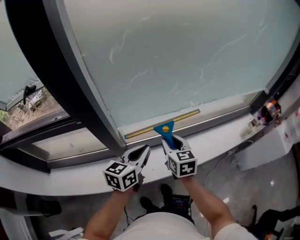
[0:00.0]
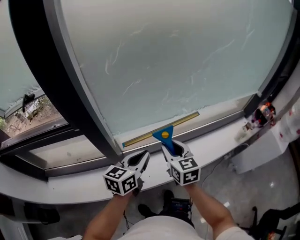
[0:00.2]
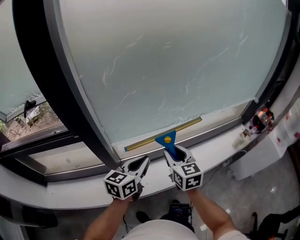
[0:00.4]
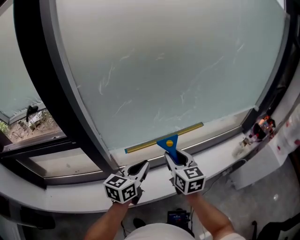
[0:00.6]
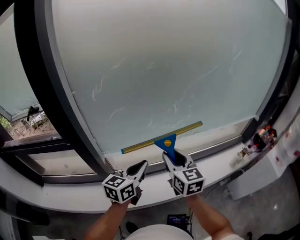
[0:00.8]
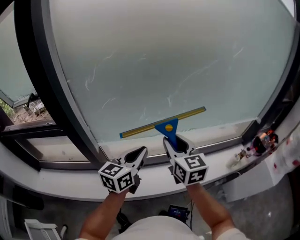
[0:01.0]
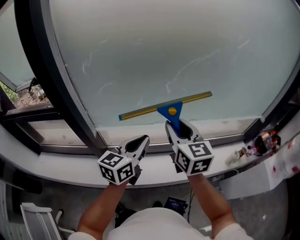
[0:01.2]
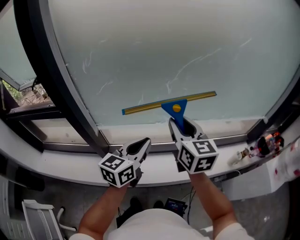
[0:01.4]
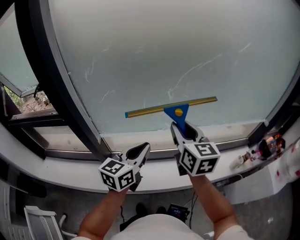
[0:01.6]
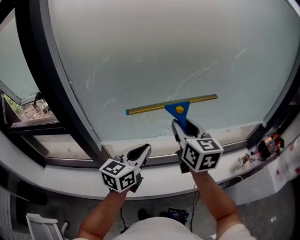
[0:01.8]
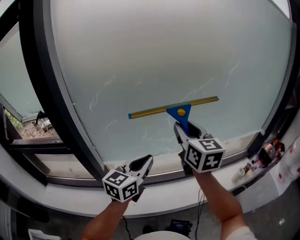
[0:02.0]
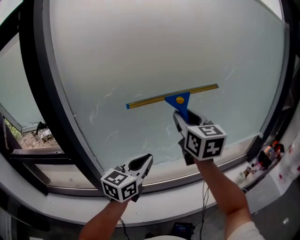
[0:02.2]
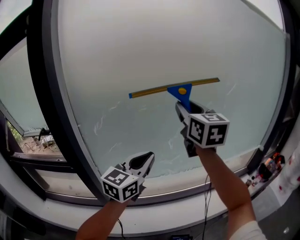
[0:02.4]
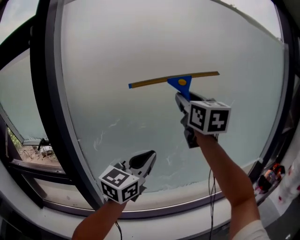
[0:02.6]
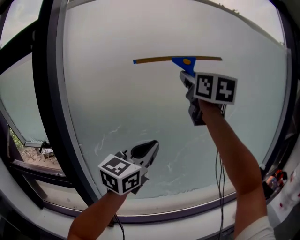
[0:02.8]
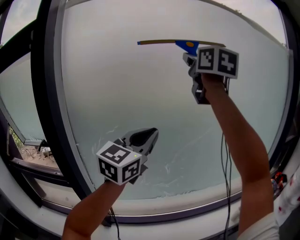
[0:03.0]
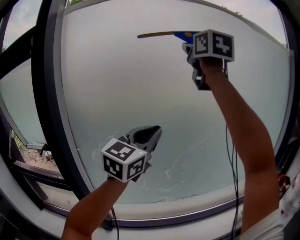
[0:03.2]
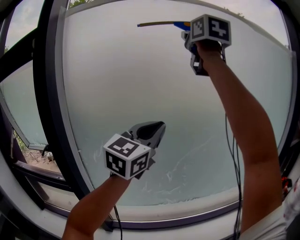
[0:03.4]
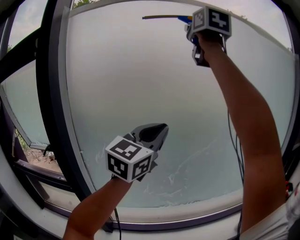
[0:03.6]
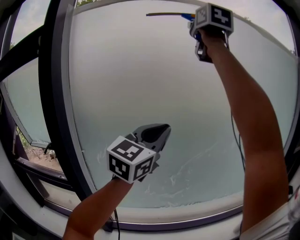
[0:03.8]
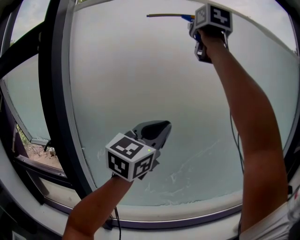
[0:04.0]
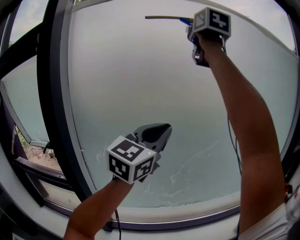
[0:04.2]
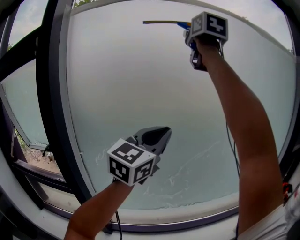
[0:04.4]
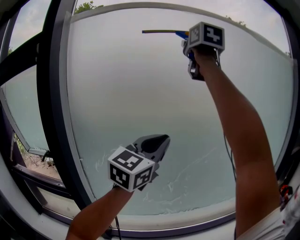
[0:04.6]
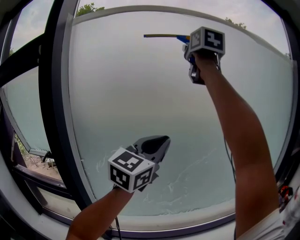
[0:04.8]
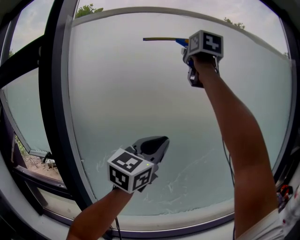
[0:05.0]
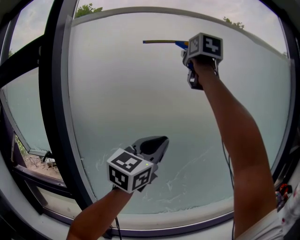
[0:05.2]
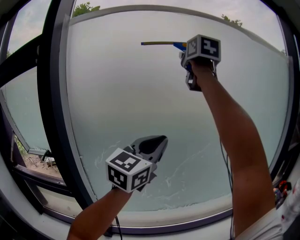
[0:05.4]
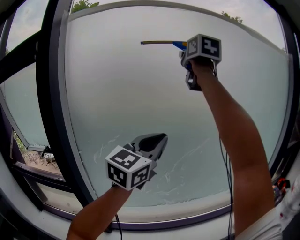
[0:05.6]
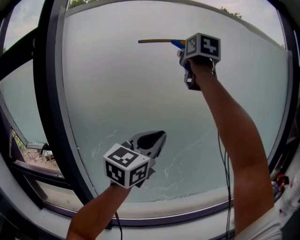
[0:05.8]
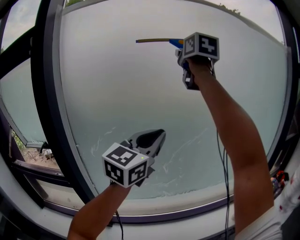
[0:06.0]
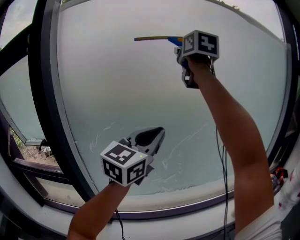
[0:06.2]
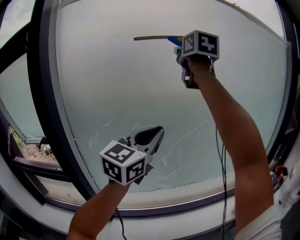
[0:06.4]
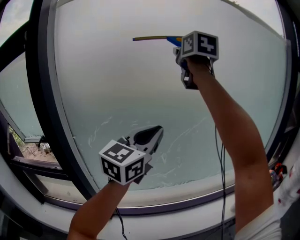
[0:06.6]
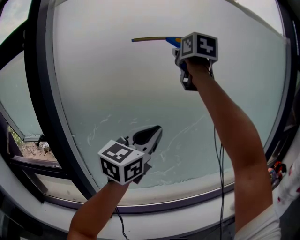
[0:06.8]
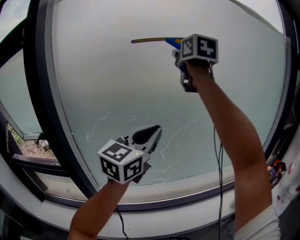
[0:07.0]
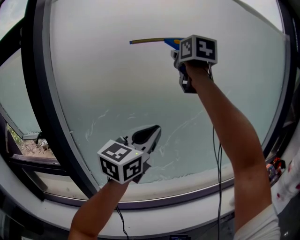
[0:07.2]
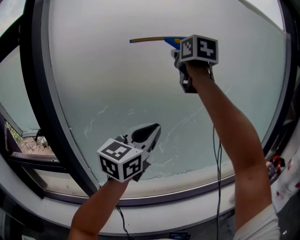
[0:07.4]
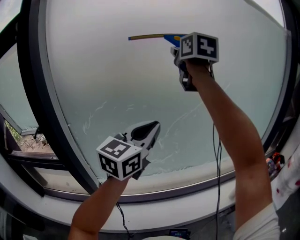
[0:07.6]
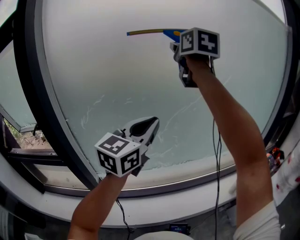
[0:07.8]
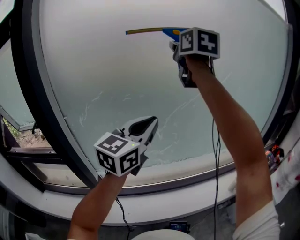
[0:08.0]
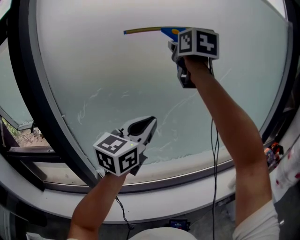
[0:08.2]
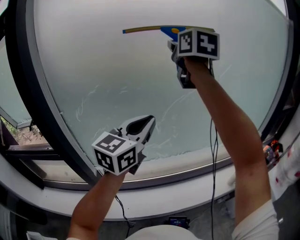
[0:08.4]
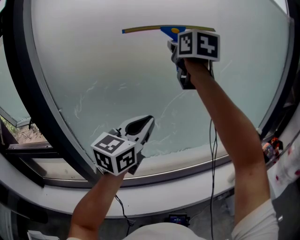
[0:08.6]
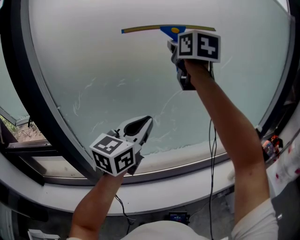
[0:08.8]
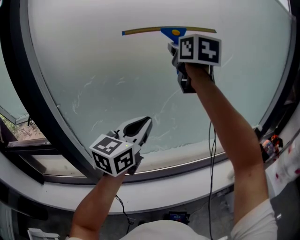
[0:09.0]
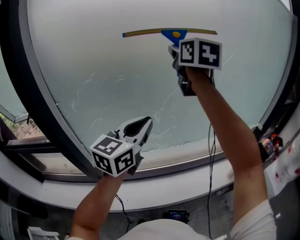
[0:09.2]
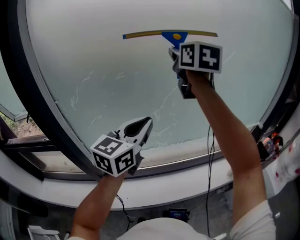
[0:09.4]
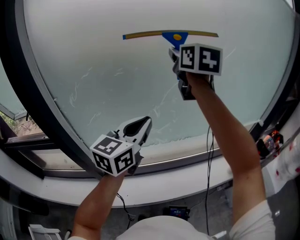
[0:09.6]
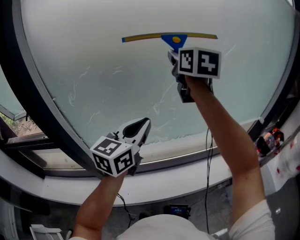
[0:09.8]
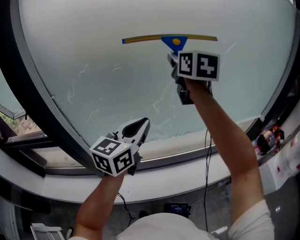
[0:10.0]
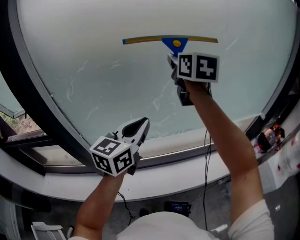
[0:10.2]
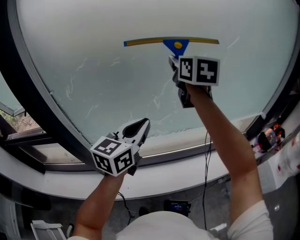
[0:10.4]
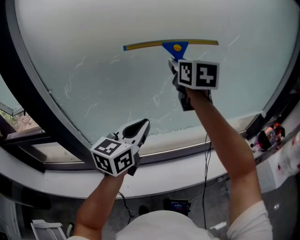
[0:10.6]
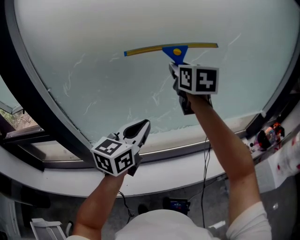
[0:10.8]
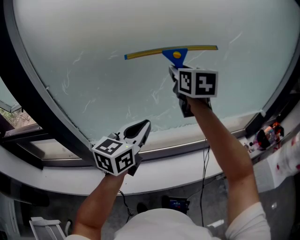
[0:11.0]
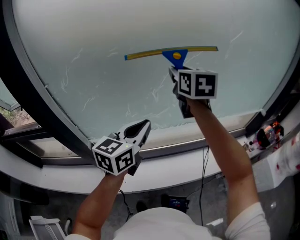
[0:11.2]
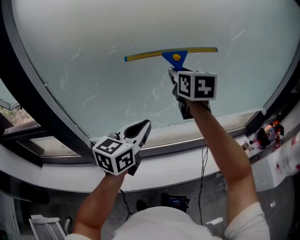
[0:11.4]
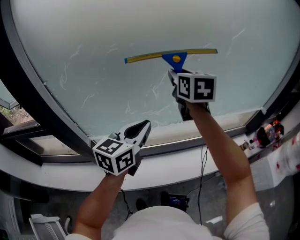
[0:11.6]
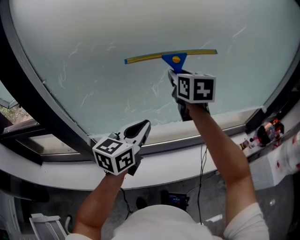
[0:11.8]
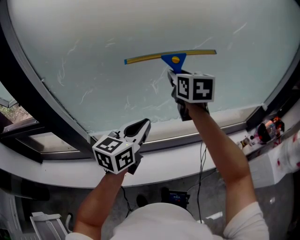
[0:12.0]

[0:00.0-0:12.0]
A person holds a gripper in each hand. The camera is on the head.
0:00.0 to 0:01.6: The left gripper shifts some 25 cm to the right and upward. The right gripper is displaced upward and to the right by about 30 cm, and rotates approximately 20 degrees.
0:01.6 to 0:03.0: The right gripper moves upward, approximately 50 cm, and rotates roughly 30 degrees. The left gripper is displaced upward by approximately 35 cm, and rotates some 40 degrees.
0:03.0 to 0:04.4: The right gripper travels upward by about 15 cm. Meanwhile the left gripper ends up some 5 cm from where it was.
0:04.4 to 0:06.0: The left gripper moves some 5 cm; the right gripper travels downward by some 10 cm.
0:06.0 to 0:07.6: The right gripper heads downward, covering approximately 10 cm. Meanwhile the left gripper goes roughly 5 cm downward.
0:07.6 to 0:09.0: The two grippers go some 10 cm downward.
0:09.0 to 0:10.4: The left gripper goes some 10 cm downward. The right gripper goes about 15 cm downward.
0:10.4 to 0:12.0: The right gripper moves downward, about 15 cm, while the left gripper goes roughly 5 cm downward.

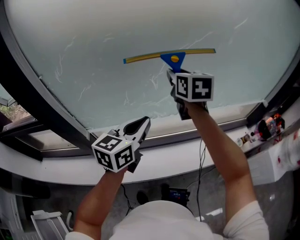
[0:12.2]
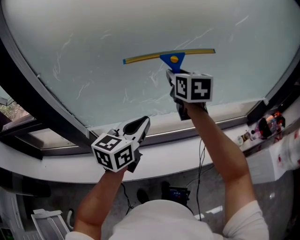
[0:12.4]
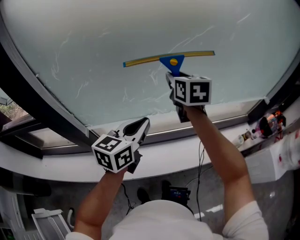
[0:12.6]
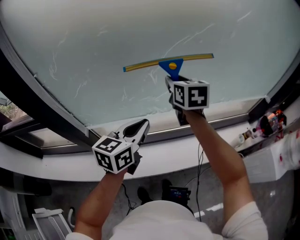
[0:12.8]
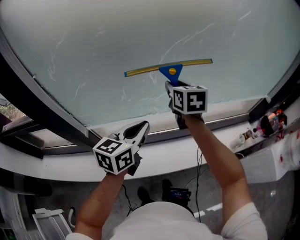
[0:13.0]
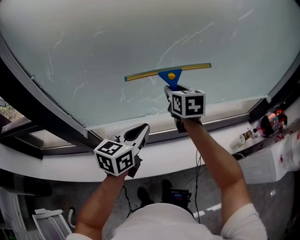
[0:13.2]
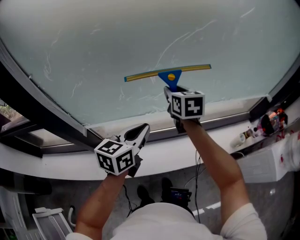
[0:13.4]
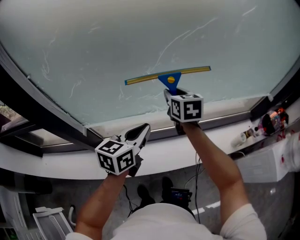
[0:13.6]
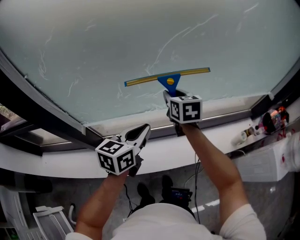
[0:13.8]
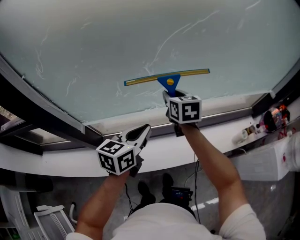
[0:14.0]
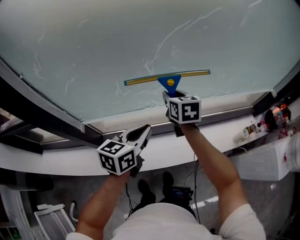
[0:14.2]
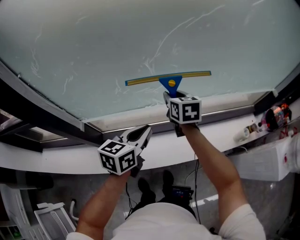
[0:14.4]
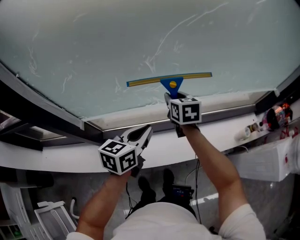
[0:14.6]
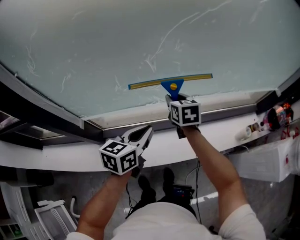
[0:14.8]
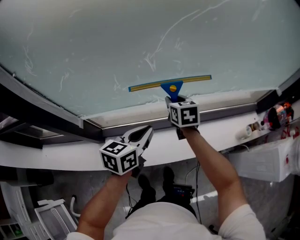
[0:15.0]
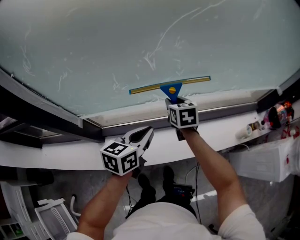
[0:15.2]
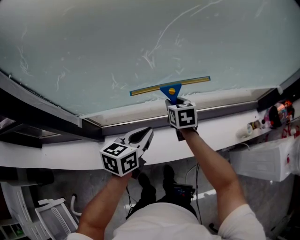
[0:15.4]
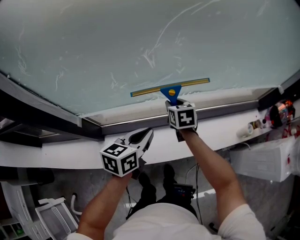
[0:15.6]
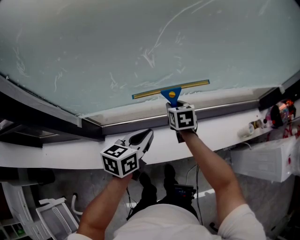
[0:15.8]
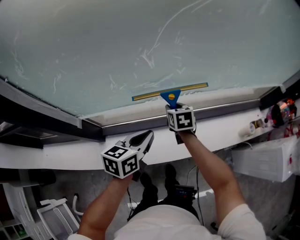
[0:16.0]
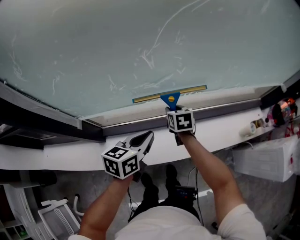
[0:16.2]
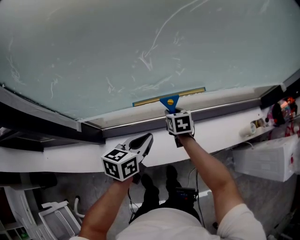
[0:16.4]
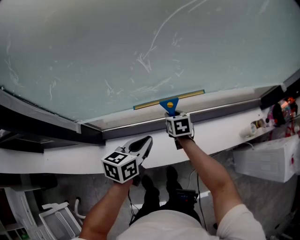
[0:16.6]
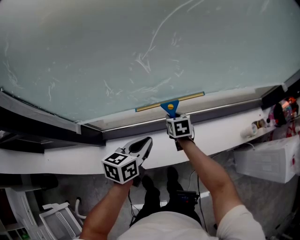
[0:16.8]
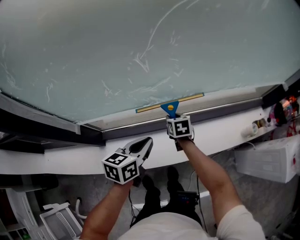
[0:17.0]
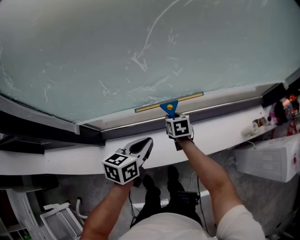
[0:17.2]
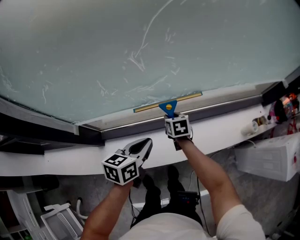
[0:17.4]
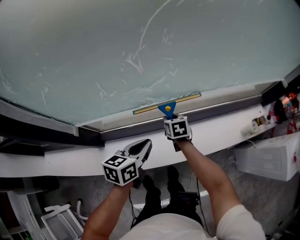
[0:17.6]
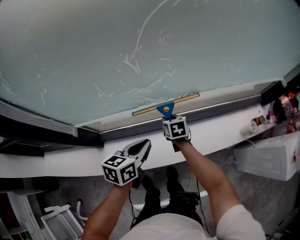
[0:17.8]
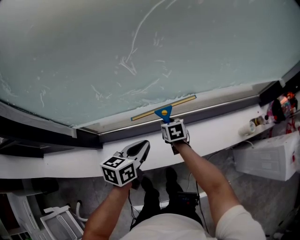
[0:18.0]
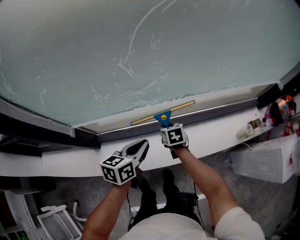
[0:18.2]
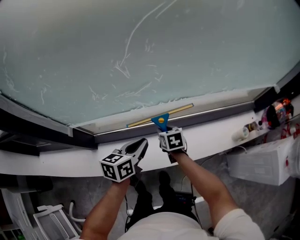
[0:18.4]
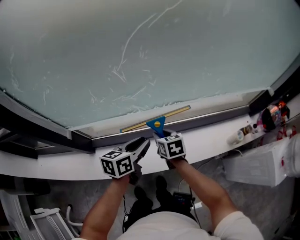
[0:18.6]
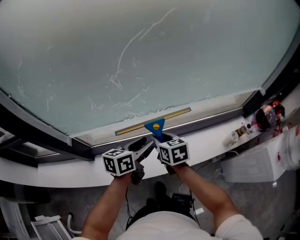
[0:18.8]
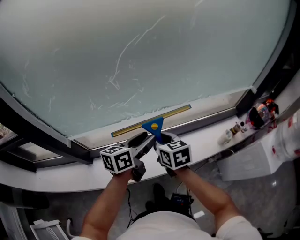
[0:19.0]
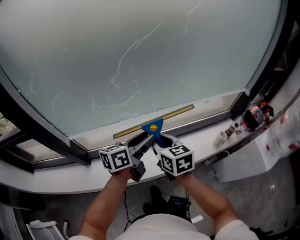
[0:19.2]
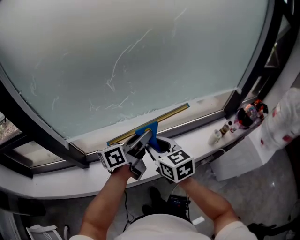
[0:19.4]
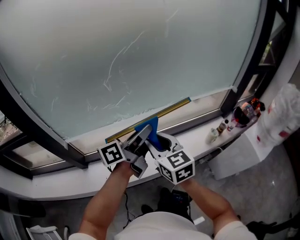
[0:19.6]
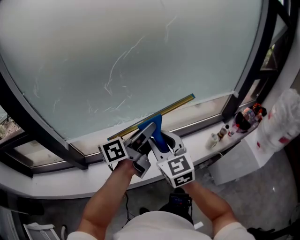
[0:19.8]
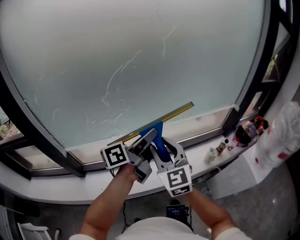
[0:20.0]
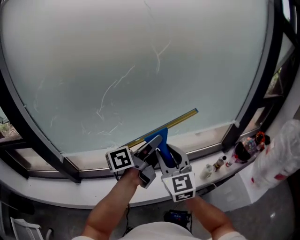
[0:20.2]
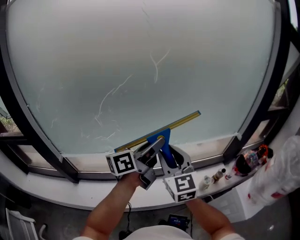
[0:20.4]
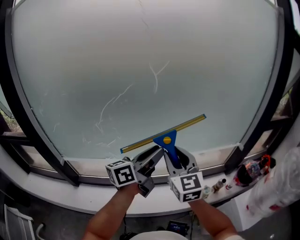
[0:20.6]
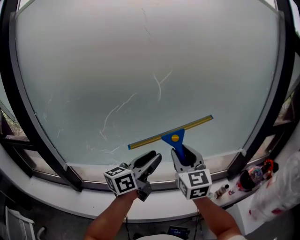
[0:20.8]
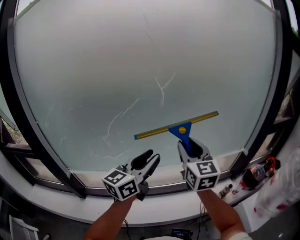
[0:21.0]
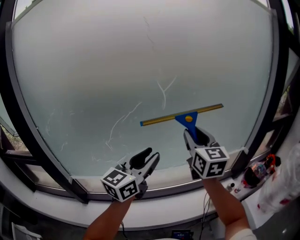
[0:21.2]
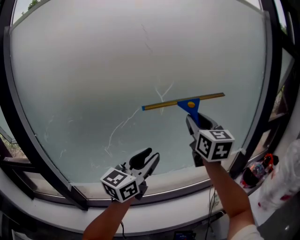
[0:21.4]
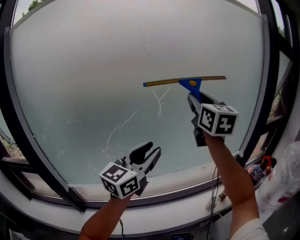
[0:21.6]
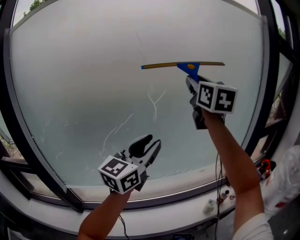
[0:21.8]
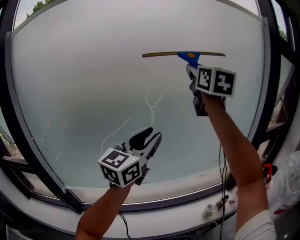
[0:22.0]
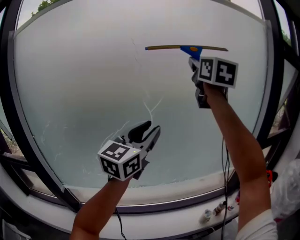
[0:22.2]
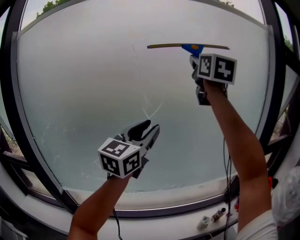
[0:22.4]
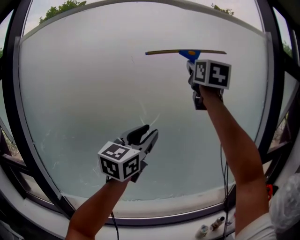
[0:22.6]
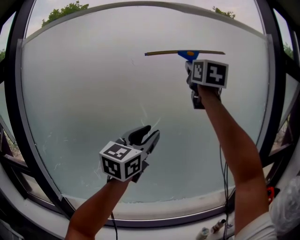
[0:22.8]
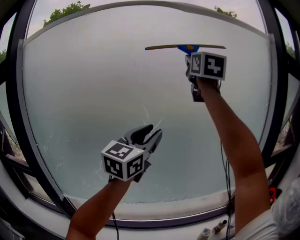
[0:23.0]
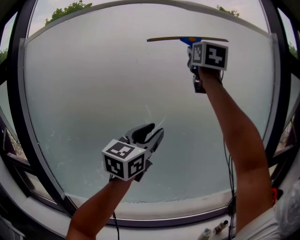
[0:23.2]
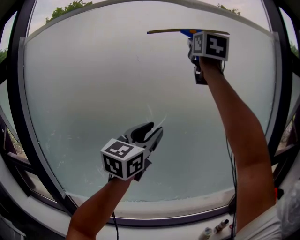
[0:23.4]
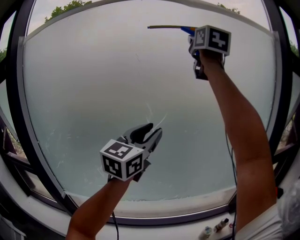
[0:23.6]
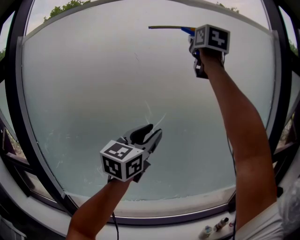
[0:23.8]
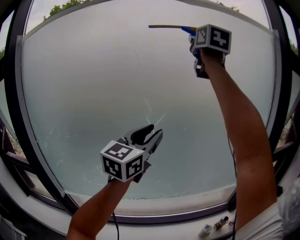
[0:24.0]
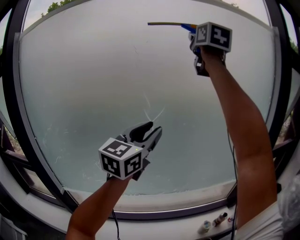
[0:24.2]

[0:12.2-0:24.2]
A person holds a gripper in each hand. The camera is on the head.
0:12.2 to 0:13.8: The left gripper travels downward by about 10 cm, while the right gripper moves downward, roughly 15 cm.
0:13.8 to 0:15.2: The right gripper travels downward by approximately 15 cm. Meanwhile the left gripper moves downward, about 10 cm.
0:15.2 to 0:16.6: The left gripper heads downward, covering some 5 cm. Meanwhile the right gripper goes some 10 cm downward.
0:16.6 to 0:18.2: The right gripper moves about 5 cm.
0:18.2 to 0:19.8: The right gripper heads upward and backward, covering about 40 cm, and angles its fingers upward, by roughly 40 degrees. The left gripper is displaced upward and to the right by approximately 30 cm, points its fingers roughly 40 degrees further upward, and opens up.
0:19.8 to 0:21.2: The left gripper travels upward, forward and to the right by some 15 cm, and rotates around the line of its fingers by about 50 degrees, clockwise from behind. The right gripper moves forward, upward and to the right, about 35 cm.
0:21.2 to 0:22.6: The left gripper shifts roughly 20 cm upward and forward, and turns by about 20 degrees; the right gripper is displaced upward by approximately 35 cm.
0:22.6 to 0:24.2: The right gripper is displaced upward by approximately 10 cm.
